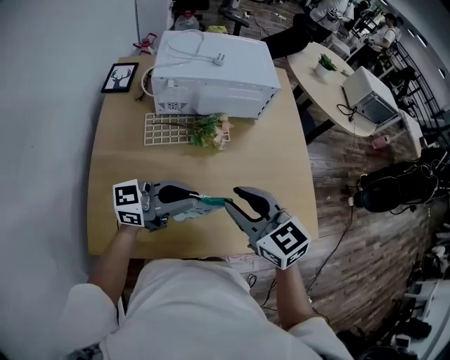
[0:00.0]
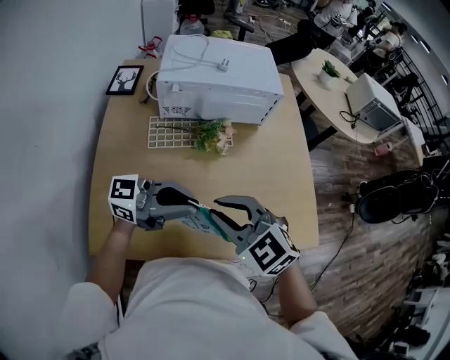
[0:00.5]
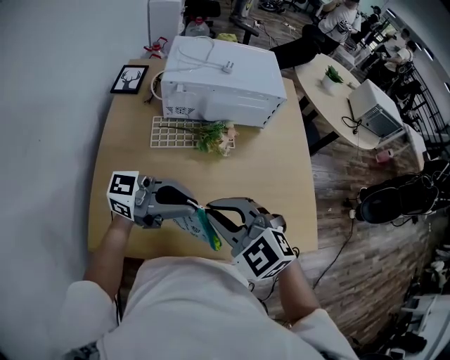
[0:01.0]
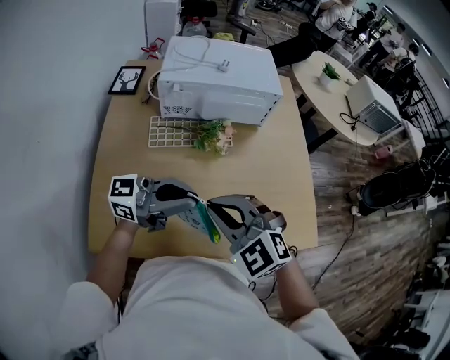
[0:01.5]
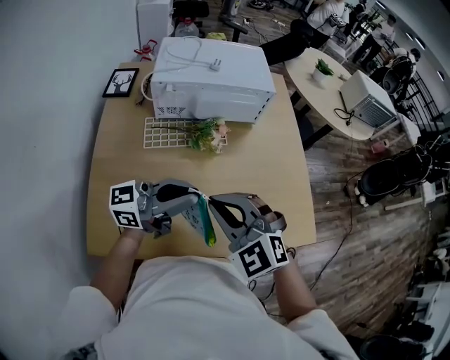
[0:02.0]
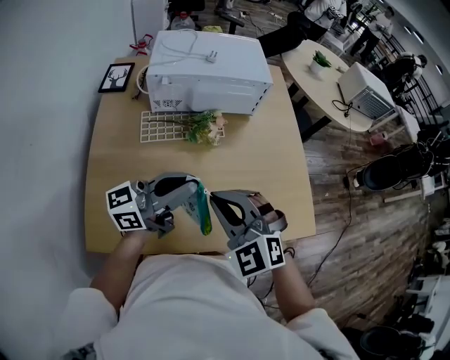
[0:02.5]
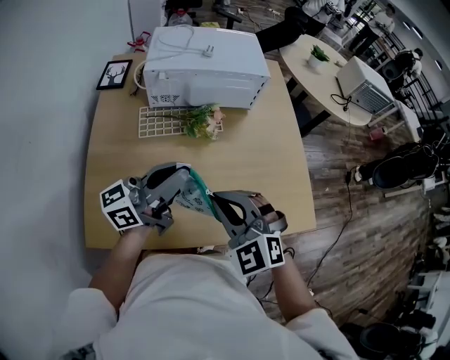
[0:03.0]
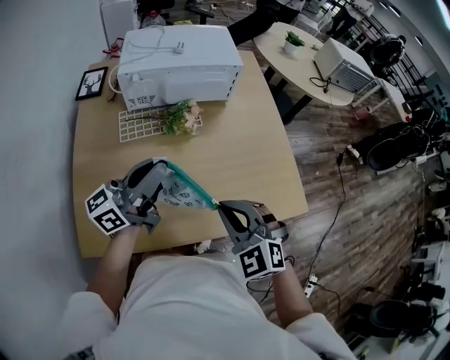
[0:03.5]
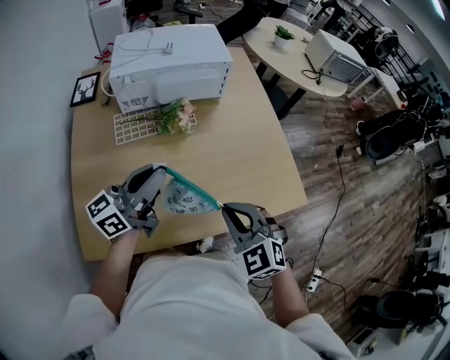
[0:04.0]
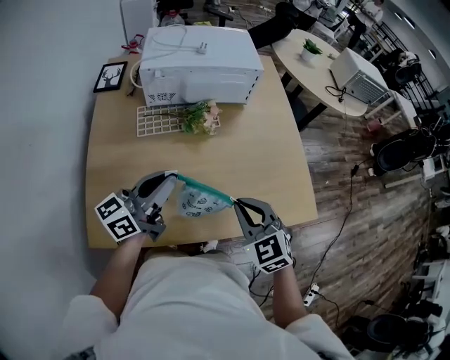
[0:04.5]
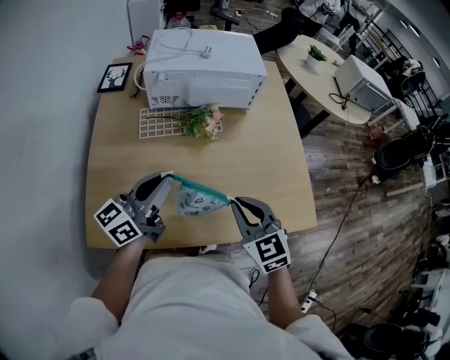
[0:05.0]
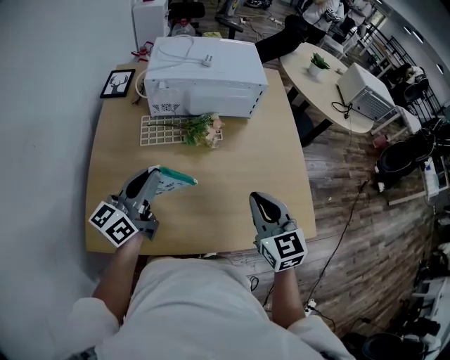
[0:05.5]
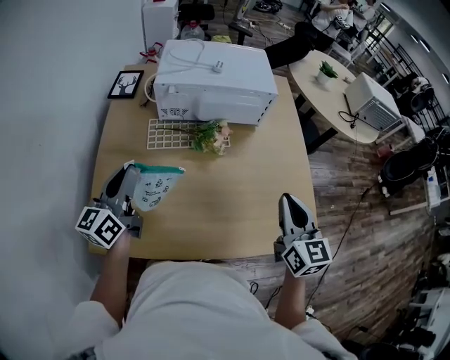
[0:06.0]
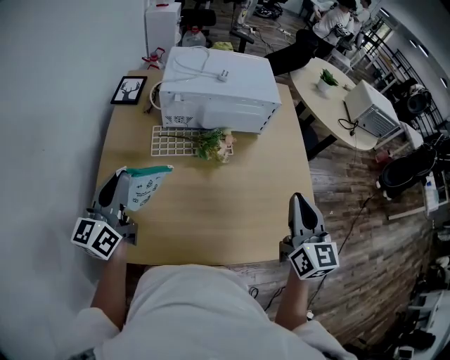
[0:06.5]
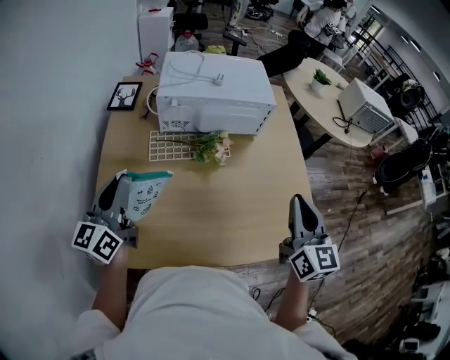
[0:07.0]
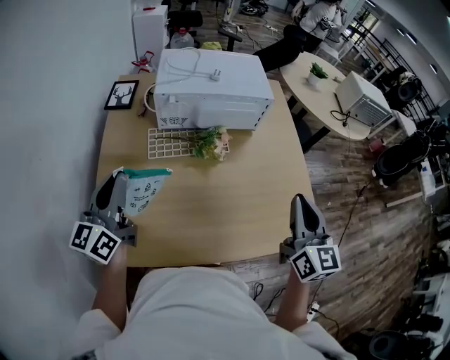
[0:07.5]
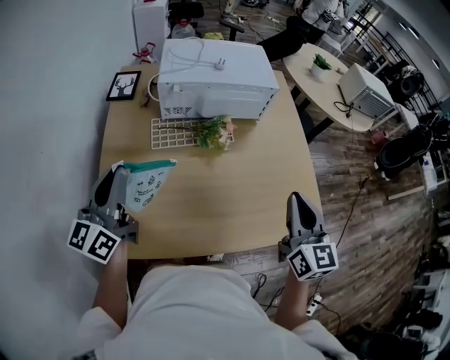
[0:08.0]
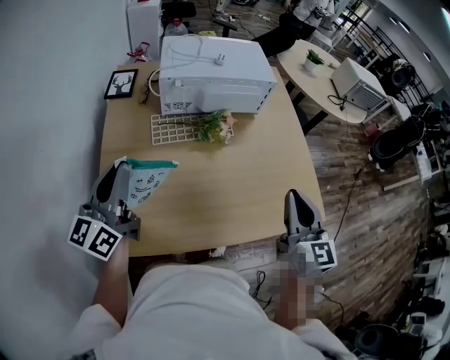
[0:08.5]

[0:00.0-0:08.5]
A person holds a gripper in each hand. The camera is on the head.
0:00.0 to 0:02.0: The left gripper goes some 5 cm upward. Meanwhile the right gripper turns by some 40 degrees.
0:02.0 to 0:04.0: The right gripper travels to the right, downward and backward by some 15 cm, and turns by roughly 20 degrees.
0:04.0 to 0:06.5: The left gripper goes approximately 20 cm to the left, and swivels approximately 50 degrees, while the right gripper goes roughly 20 cm forward, upward and to the right, and turns by about 50 degrees.
0:06.5 to 0:08.5: The left gripper shifts by some 5 cm, while the right gripper shifts about 10 cm backward and to the left.

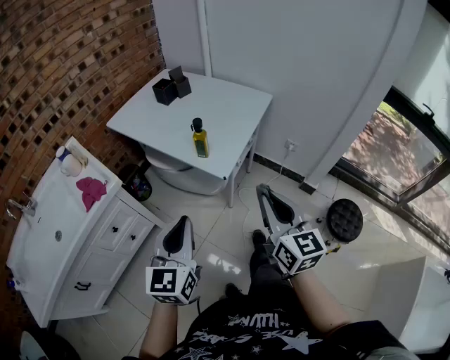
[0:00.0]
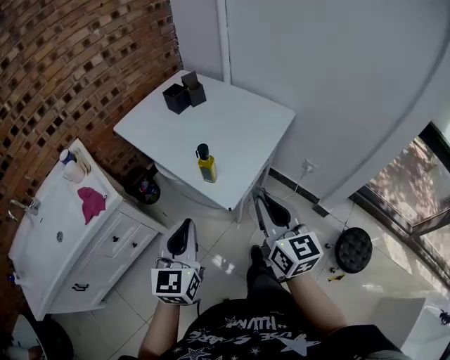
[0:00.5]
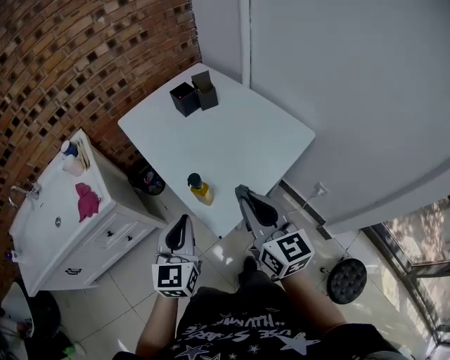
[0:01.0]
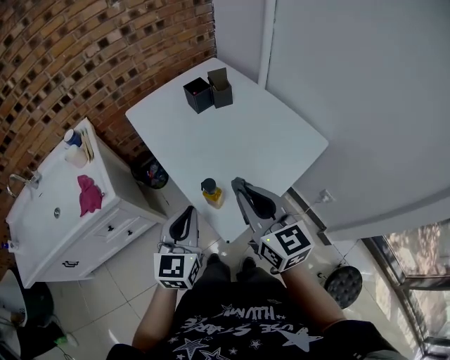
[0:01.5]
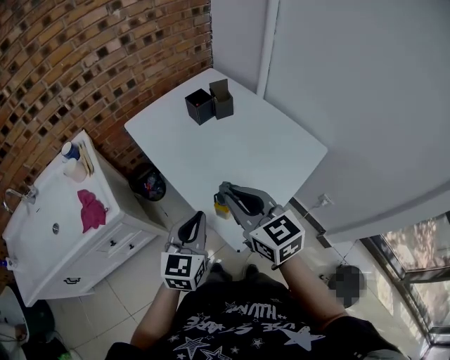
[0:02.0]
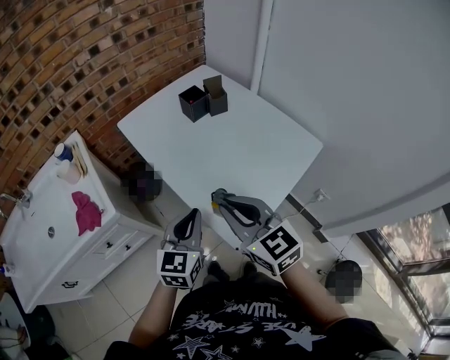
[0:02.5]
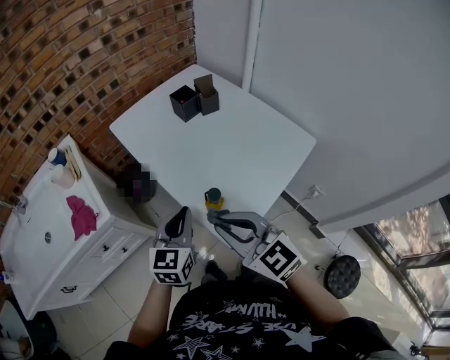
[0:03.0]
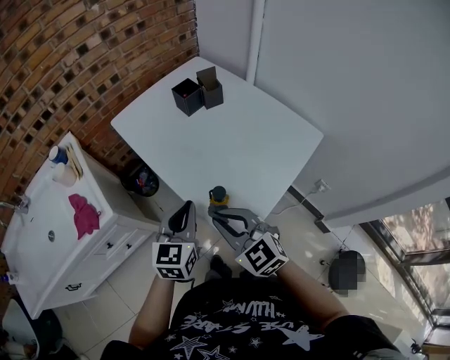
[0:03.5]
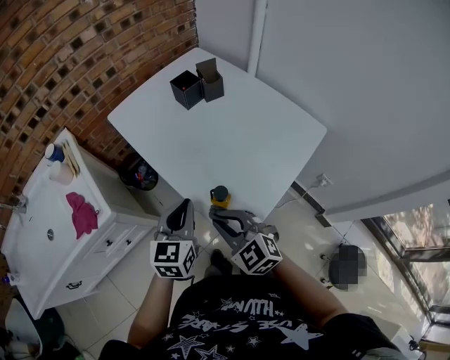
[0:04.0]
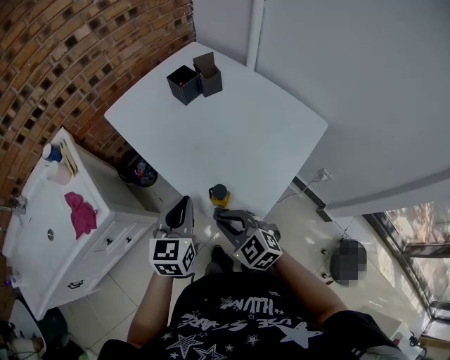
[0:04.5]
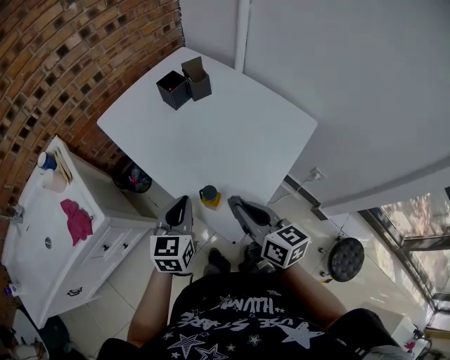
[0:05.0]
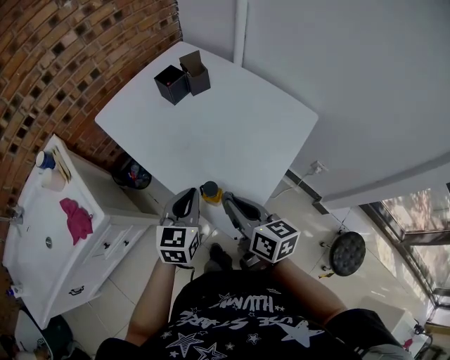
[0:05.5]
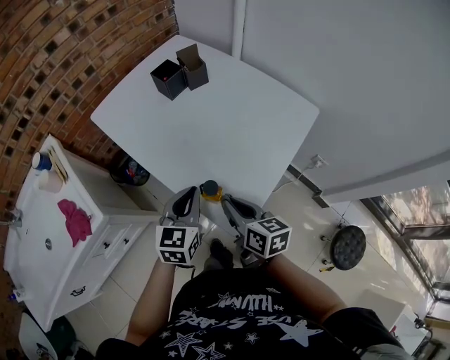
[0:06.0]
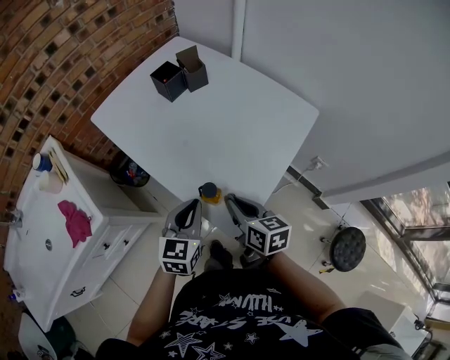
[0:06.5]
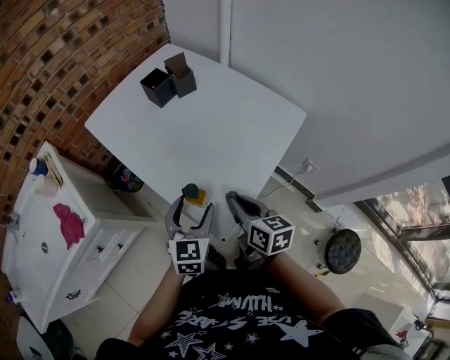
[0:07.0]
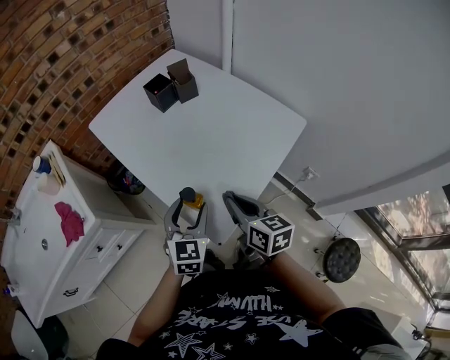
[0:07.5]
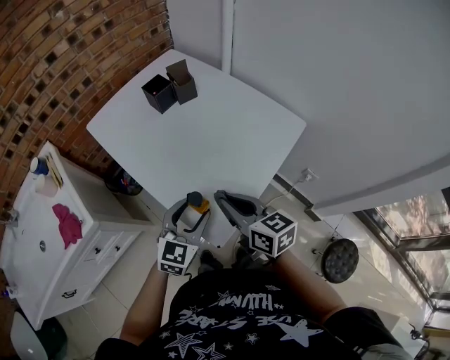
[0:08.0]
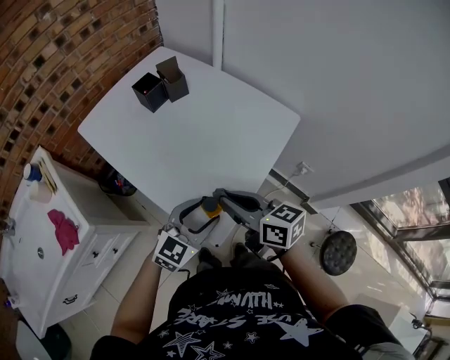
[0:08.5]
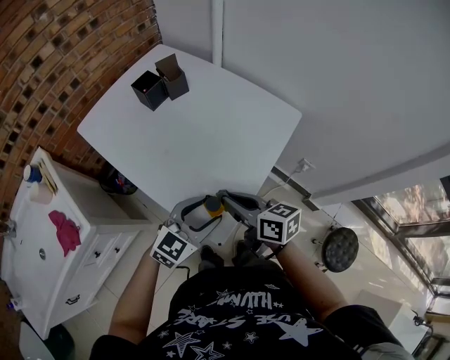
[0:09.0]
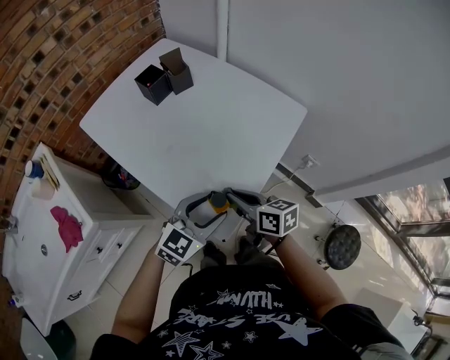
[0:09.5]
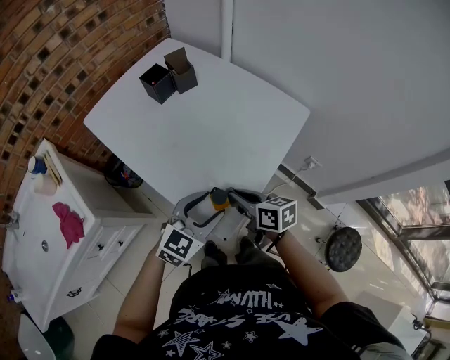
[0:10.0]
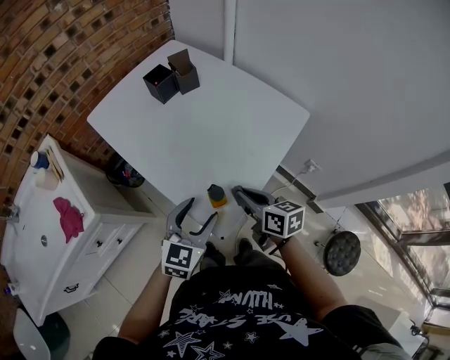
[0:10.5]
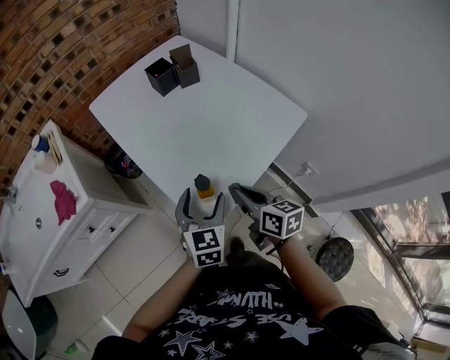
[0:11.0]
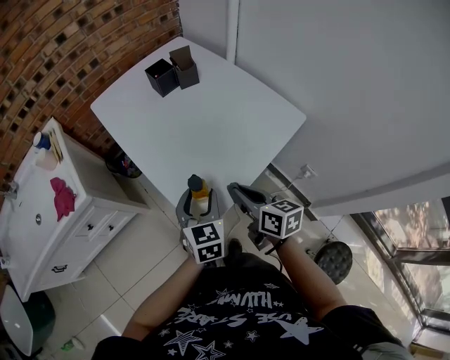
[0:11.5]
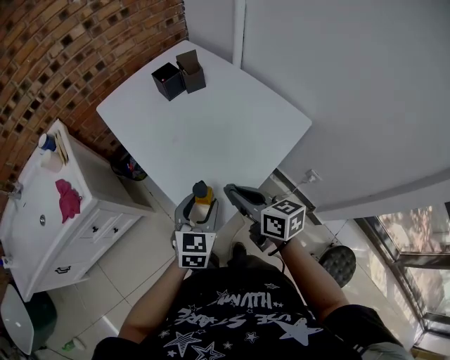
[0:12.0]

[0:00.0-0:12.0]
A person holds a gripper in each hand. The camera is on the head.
0:00.0 to 0:02.0: Both grippers move forward, roughly 25 cm. The right gripper rotates about 40 degrees.
0:02.0 to 0:04.0: The left gripper moves some 5 cm. Meanwhile the right gripper goes roughly 15 cm downward and to the left, and swivels approximately 30 degrees.
0:04.0 to 0:06.0: The right gripper shifts approximately 5 cm to the right, and rolls clockwise, seen from behind, by some 60 degrees; the left gripper moves roughly 5 cm.
0:06.0 to 0:08.0: The left gripper heads to the right, covering some 5 cm, and opens its fingers, while the right gripper is displaced upward by about 5 cm.
0:08.0 to 0:10.0: The right gripper is displaced downward by roughly 10 cm.
0:10.0 to 0:12.0: The right gripper moves upward, approximately 5 cm, while the left gripper turns by some 40 degrees.

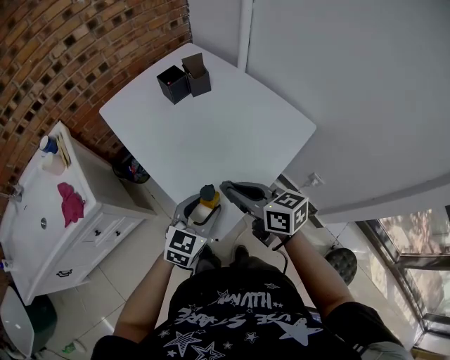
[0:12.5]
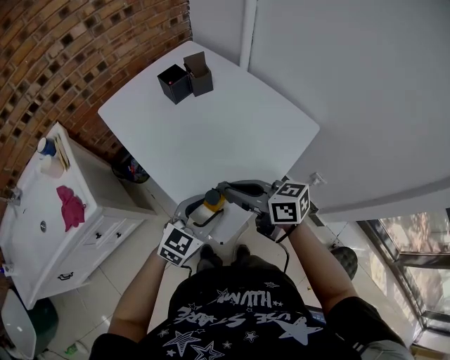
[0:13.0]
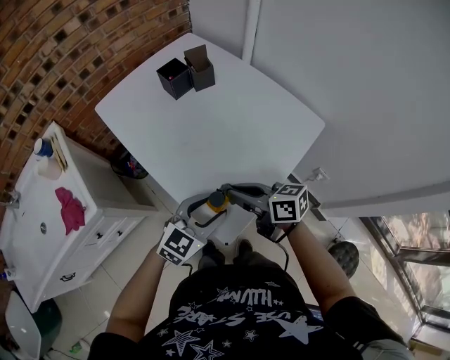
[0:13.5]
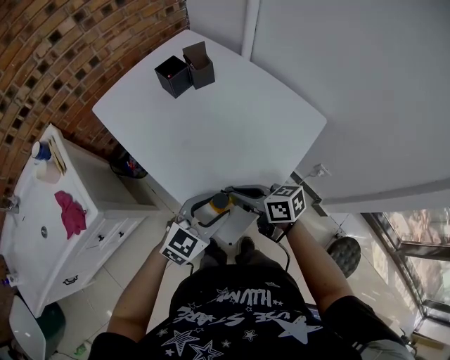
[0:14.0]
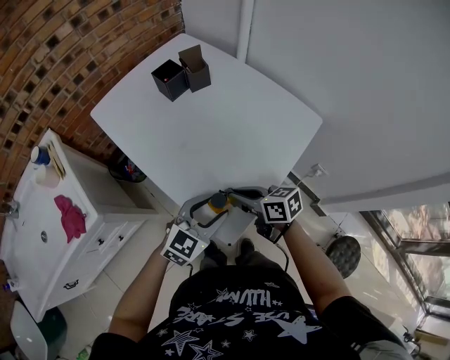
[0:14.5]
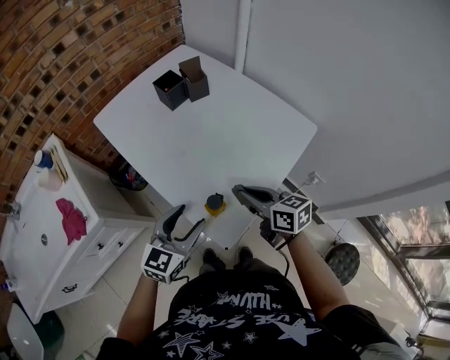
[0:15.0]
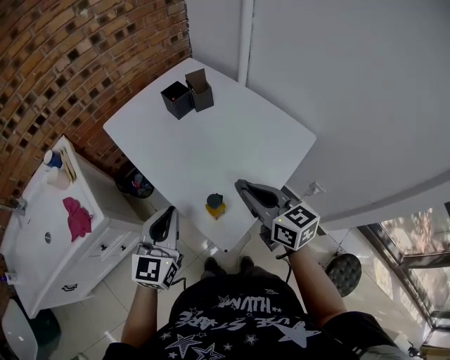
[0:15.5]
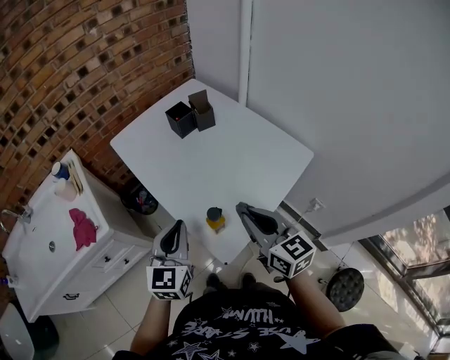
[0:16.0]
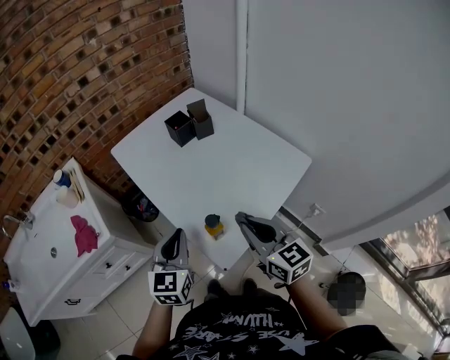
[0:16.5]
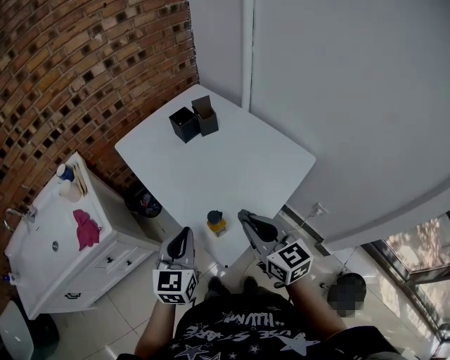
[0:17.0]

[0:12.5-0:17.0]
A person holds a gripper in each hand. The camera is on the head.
0:12.5 to 0:14.5: The right gripper moves downward, roughly 10 cm.
0:14.5 to 0:17.0: The right gripper is displaced upward by about 15 cm, and swivels roughly 40 degrees. Meanwhile the left gripper shifts approximately 15 cm upward and to the left, changes its angle by roughly 40 degrees, and closes its fingers.

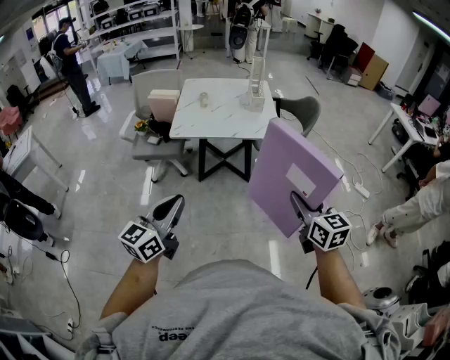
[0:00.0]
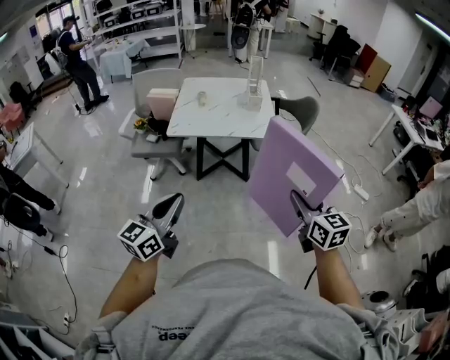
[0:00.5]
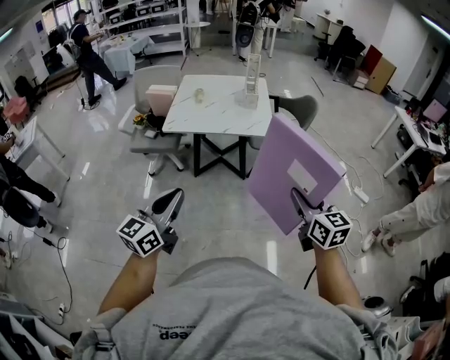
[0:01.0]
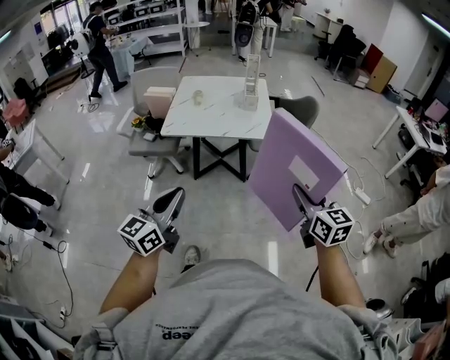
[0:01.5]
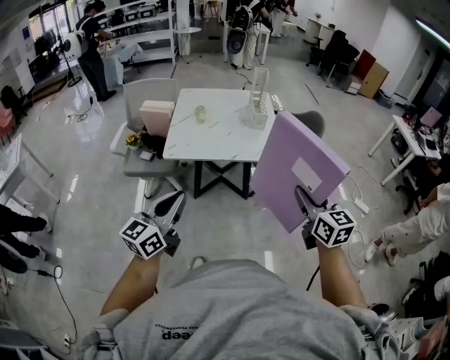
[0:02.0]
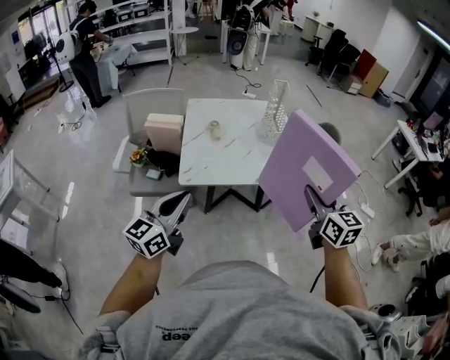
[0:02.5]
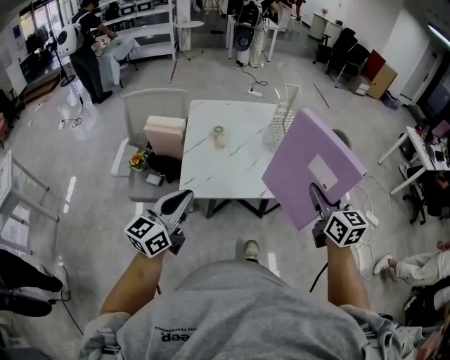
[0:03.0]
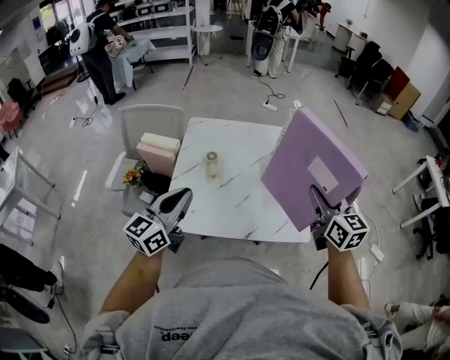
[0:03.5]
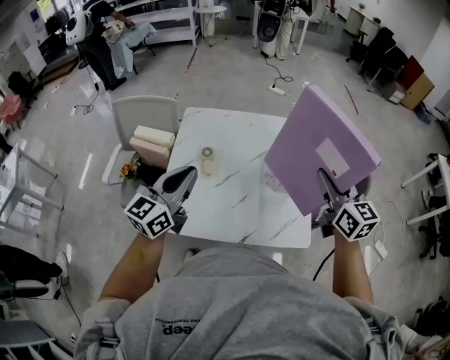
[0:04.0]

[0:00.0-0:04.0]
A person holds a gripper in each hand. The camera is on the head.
0:00.0 to 0:02.0: The grippers both shift forward by some 15 cm.
0:02.0 to 0:04.0: The pair of grippers is taken forward, some 60 cm.
